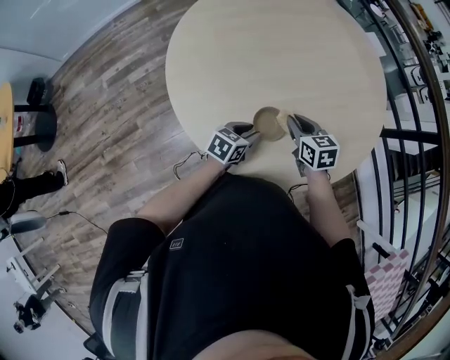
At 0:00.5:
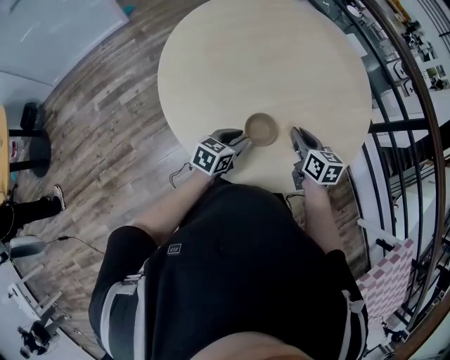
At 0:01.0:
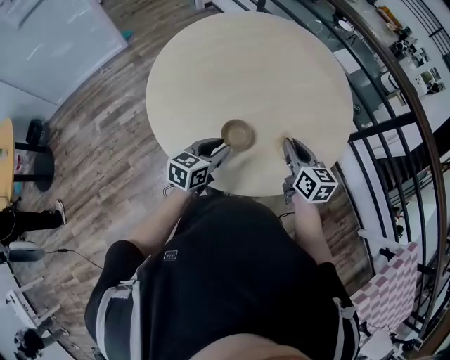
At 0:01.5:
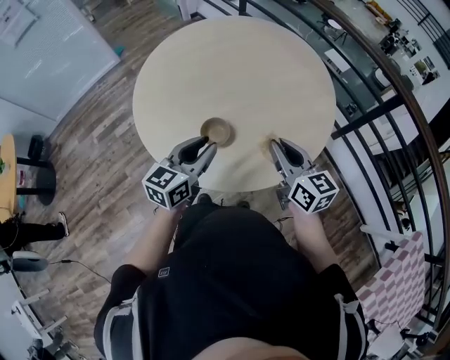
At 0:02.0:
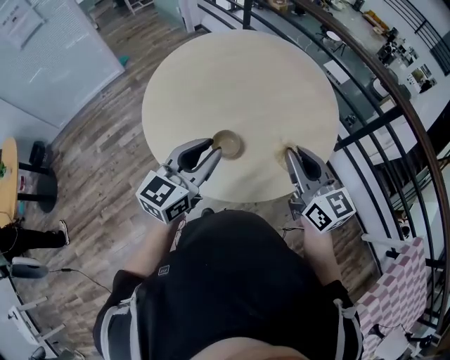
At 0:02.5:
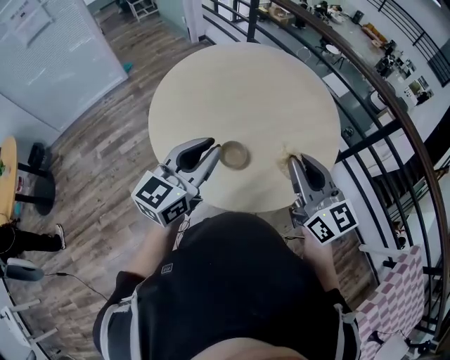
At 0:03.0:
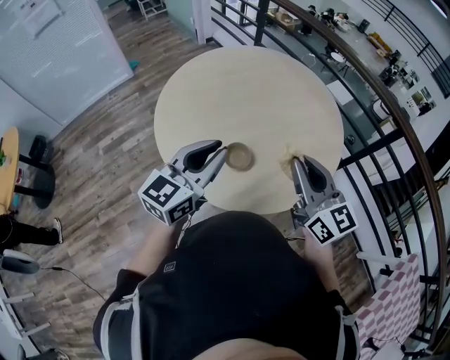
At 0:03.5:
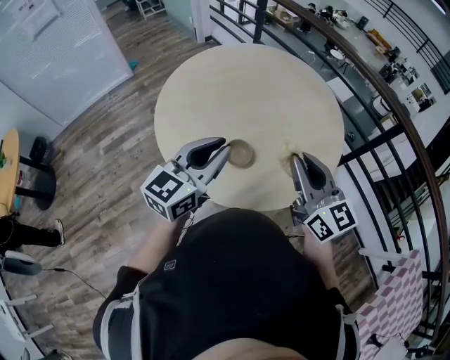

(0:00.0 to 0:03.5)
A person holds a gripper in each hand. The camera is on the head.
0:00.0 - 0:02.0: The left gripper travels upward by approximately 30 cm, and tilts its fingers about 30 degrees upward. The right gripper is displaced upward, backward and to the right by some 35 cm, and points its fingers approximately 40 degrees further upward.
0:02.0 - 0:03.5: The right gripper moves some 5 cm.

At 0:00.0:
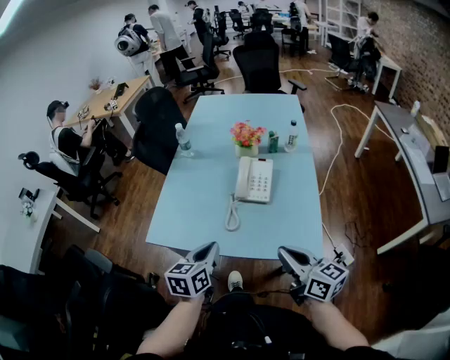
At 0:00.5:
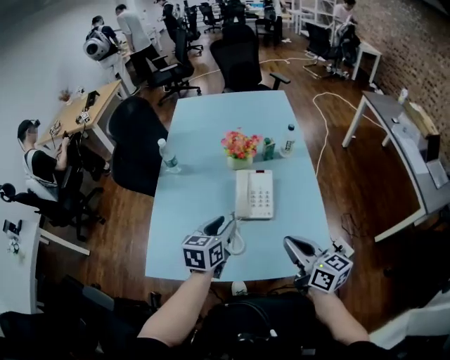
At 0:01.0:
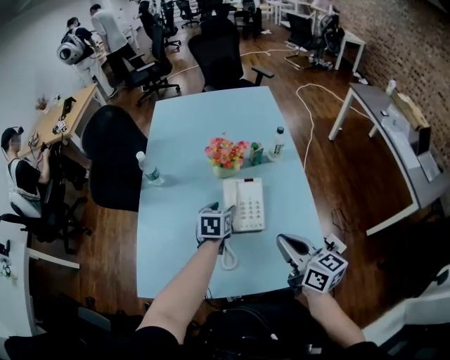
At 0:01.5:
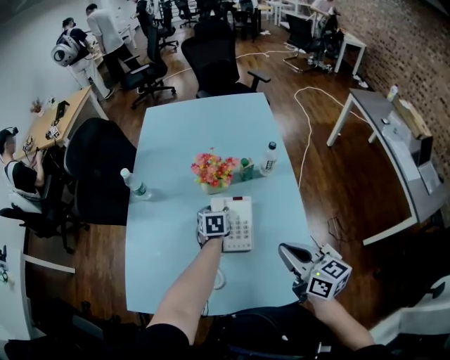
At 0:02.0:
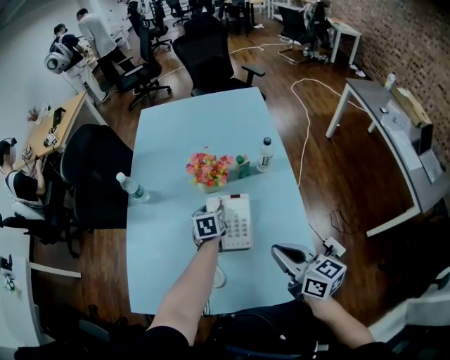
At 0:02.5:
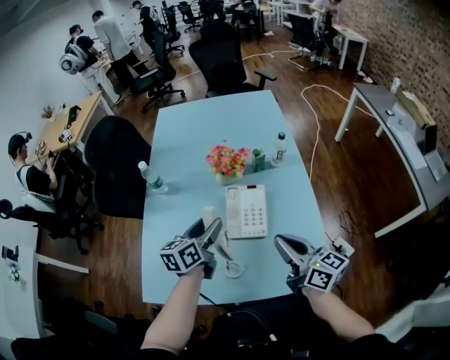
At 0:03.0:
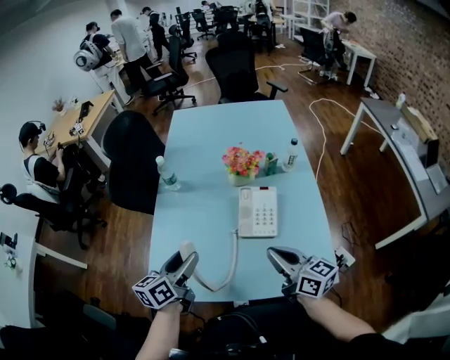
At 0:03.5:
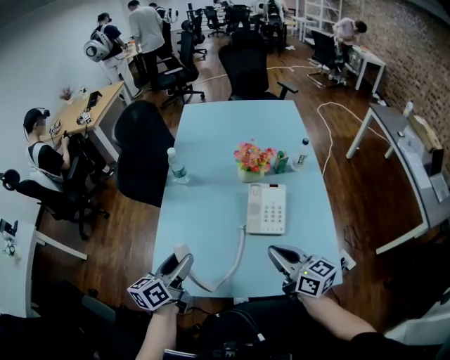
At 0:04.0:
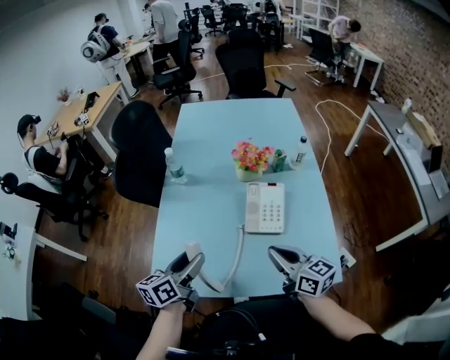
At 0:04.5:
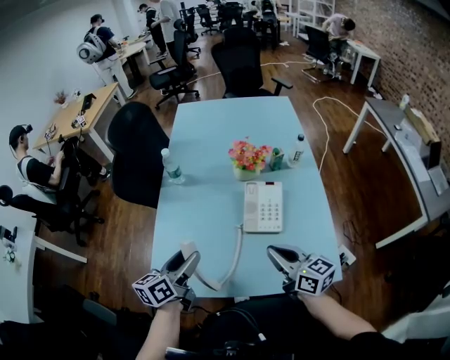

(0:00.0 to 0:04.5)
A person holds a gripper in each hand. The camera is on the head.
0:00.0 - 0:02.0: The right gripper travels forward by roughly 25 cm. Meanwhile the left gripper goes approximately 40 cm forward, turns by approximately 20 degrees, and opens up.
0:02.0 - 0:04.5: The right gripper travels to the left by approximately 15 cm; the left gripper shifts approximately 35 cm backward, to the left and upward, and tilts its fingers roughly 30 degrees upward.

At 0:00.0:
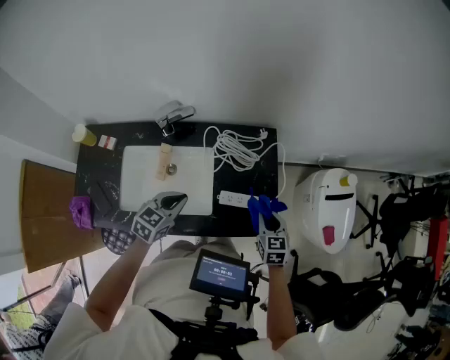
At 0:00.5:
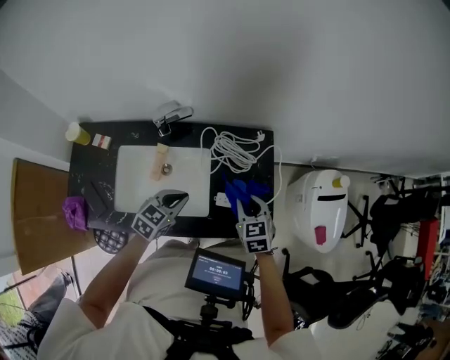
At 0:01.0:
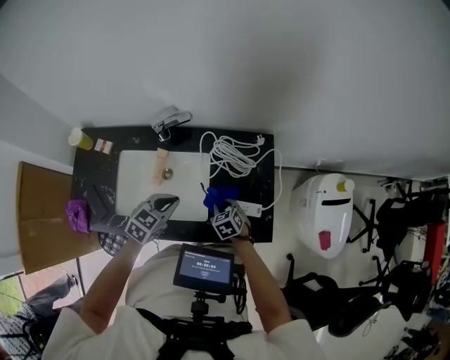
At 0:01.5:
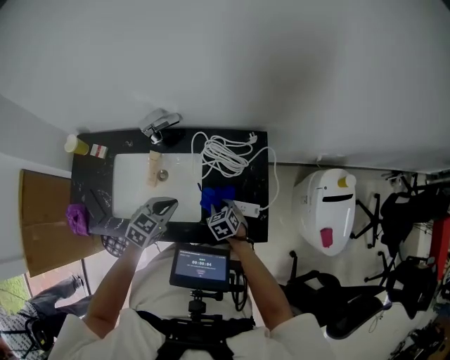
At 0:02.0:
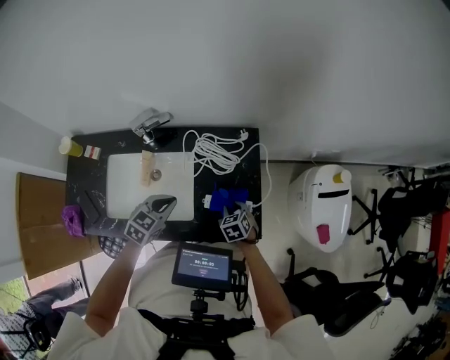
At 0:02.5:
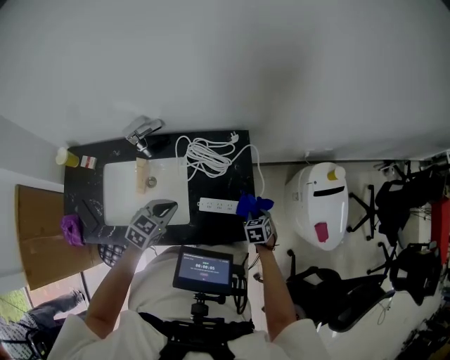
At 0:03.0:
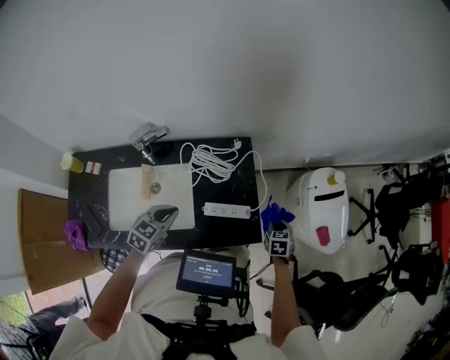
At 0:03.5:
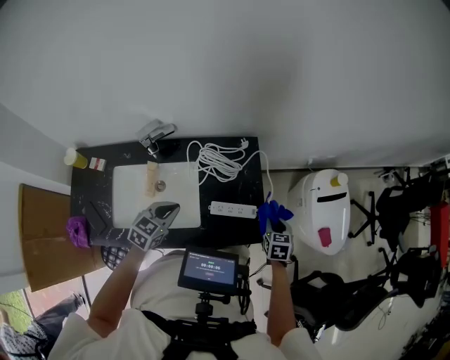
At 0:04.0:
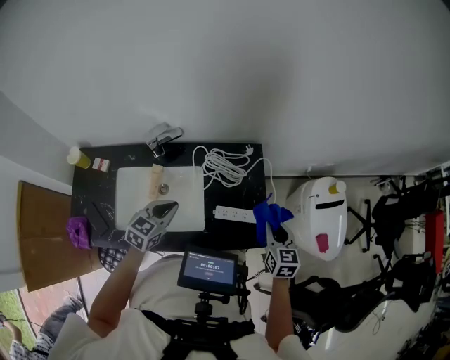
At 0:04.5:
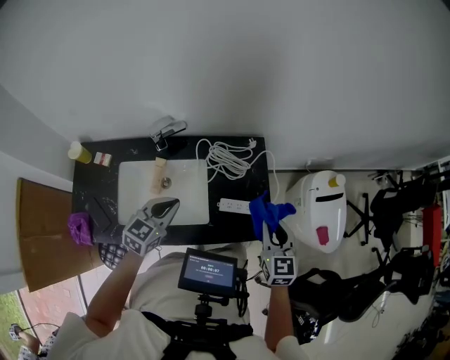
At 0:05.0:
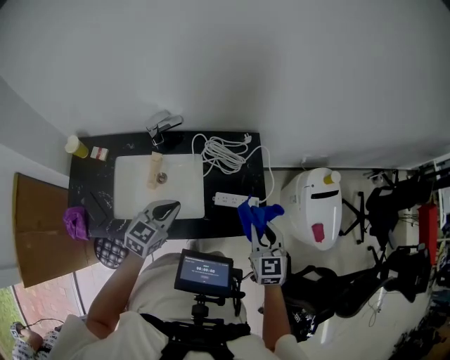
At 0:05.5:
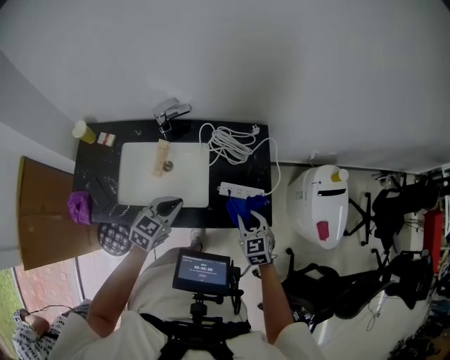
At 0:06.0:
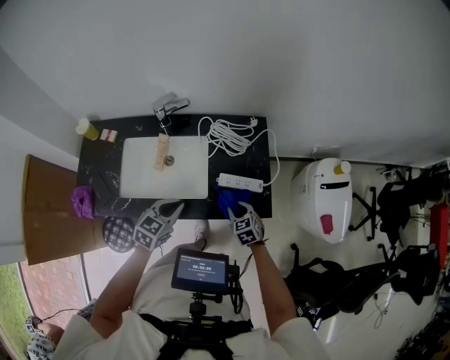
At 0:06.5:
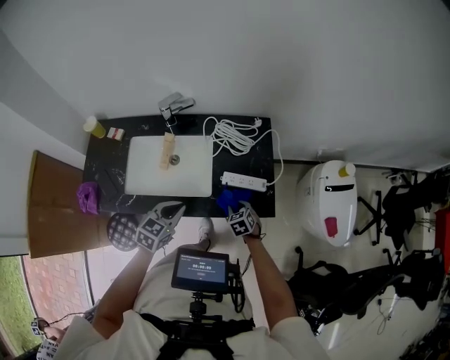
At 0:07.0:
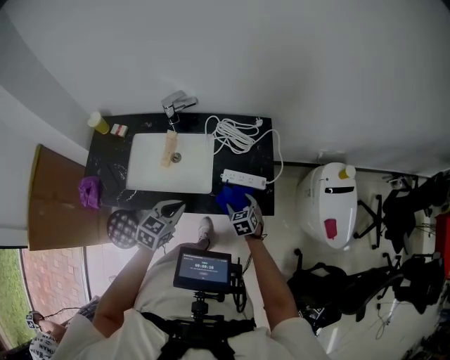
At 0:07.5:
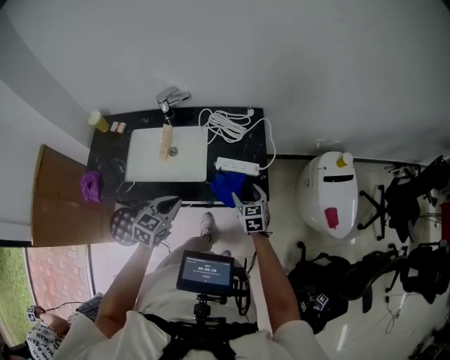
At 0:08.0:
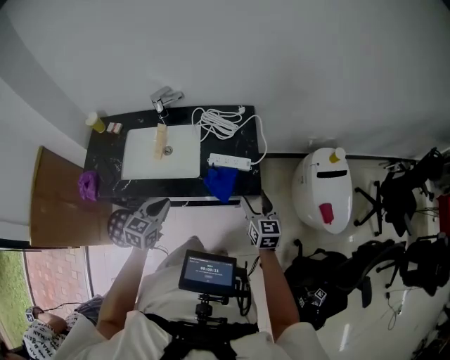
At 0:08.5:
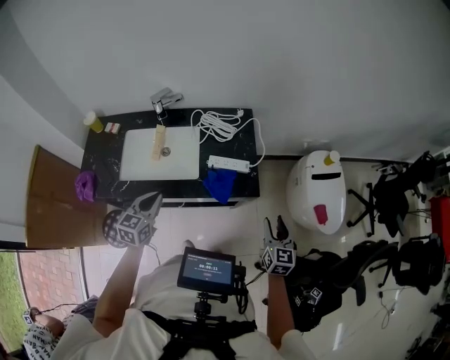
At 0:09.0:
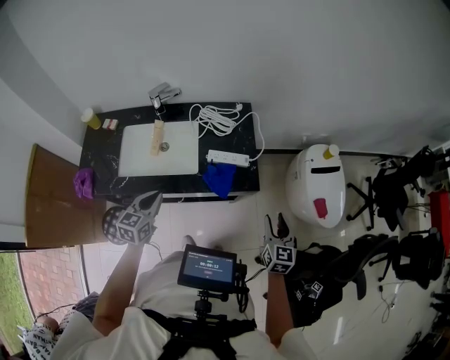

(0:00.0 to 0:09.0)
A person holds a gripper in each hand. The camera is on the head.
0:00.0 - 0:02.0: The left gripper travels to the right by about 5 cm. The right gripper is displaced downward by some 10 cm, travels to the left and back again, approximately 15 cm each way, and rotates some 20 degrees.
0:02.0 - 0:04.5: The right gripper moves upward, some 25 cm, and points its fingers some 40 degrees further upward, while the left gripper shifts about 15 cm upward, to the left and backward.
0:04.5 - 0:07.0: The left gripper travels backward and to the right by roughly 20 cm; the right gripper moves downward, roughly 25 cm, swivels approximately 30 degrees, and opens its fingers.
0:07.0 - 0:09.0: The left gripper goes some 10 cm backward and upward. Meanwhile the right gripper goes about 35 cm to the right, upward and backward, swivels about 40 degrees, and closes its fingers.

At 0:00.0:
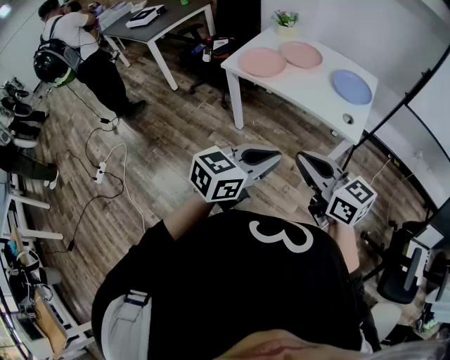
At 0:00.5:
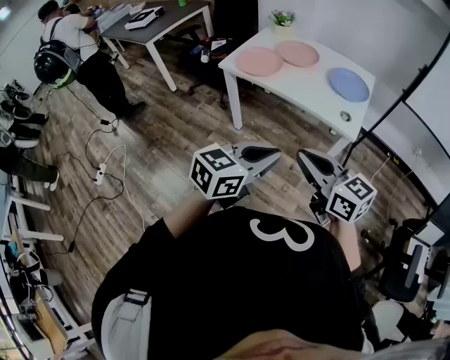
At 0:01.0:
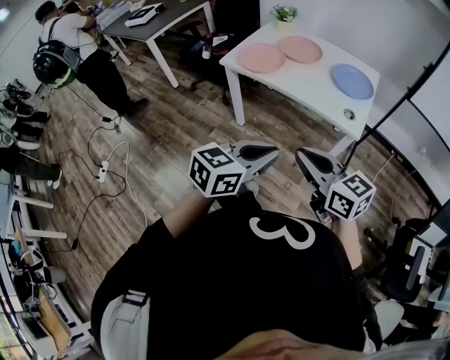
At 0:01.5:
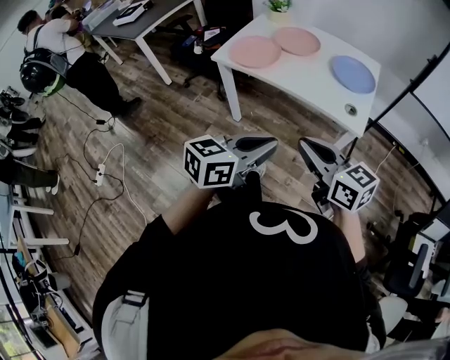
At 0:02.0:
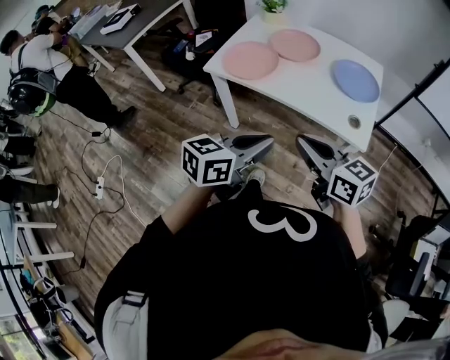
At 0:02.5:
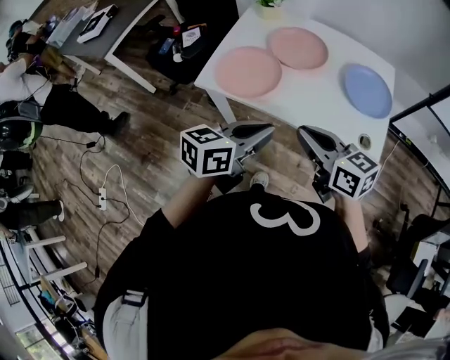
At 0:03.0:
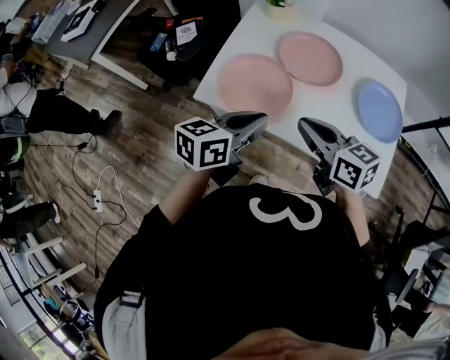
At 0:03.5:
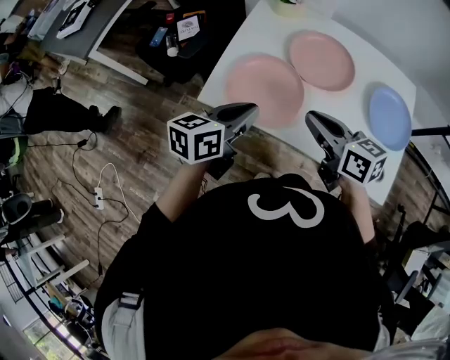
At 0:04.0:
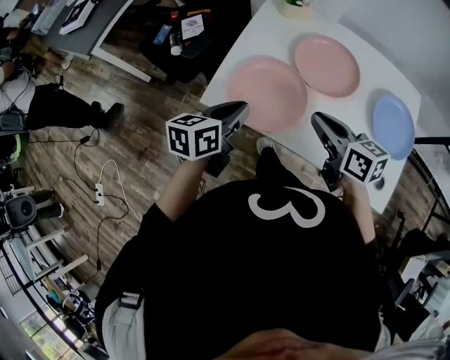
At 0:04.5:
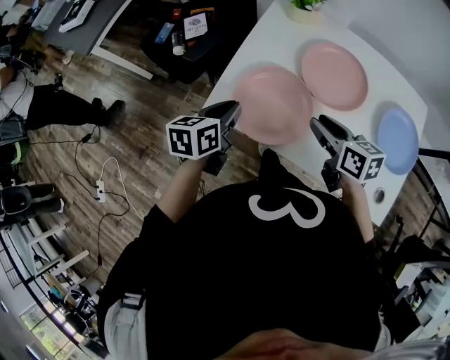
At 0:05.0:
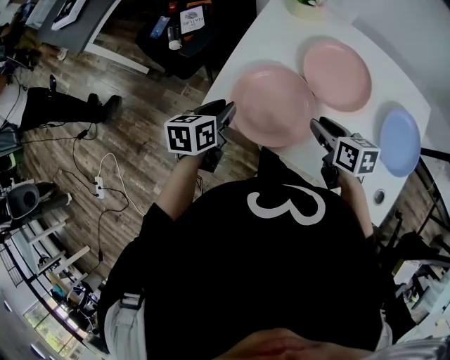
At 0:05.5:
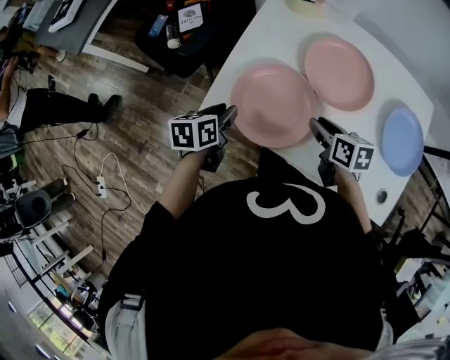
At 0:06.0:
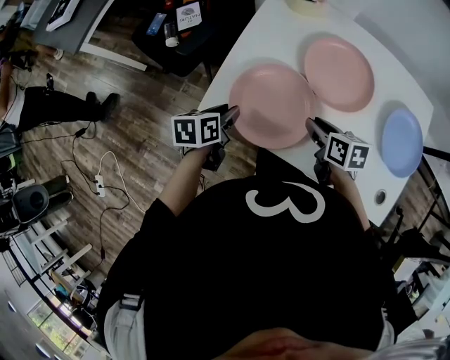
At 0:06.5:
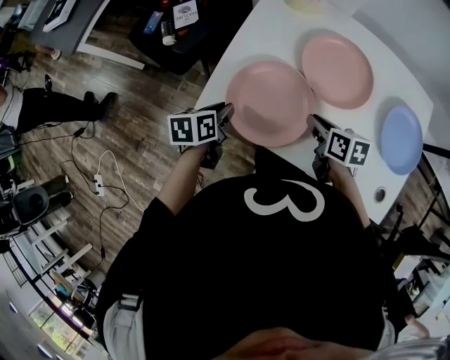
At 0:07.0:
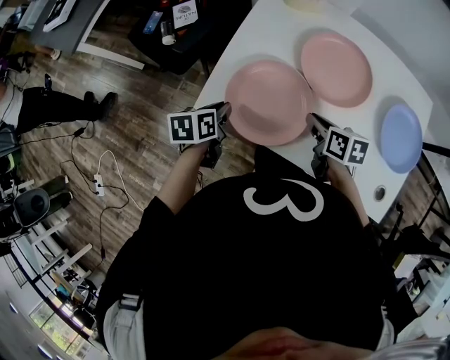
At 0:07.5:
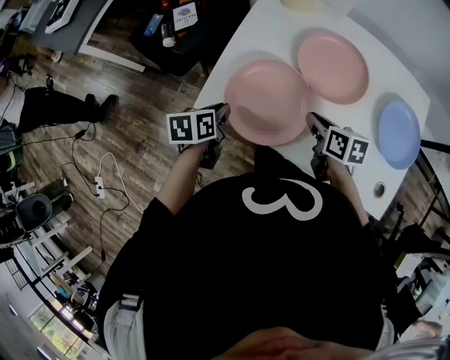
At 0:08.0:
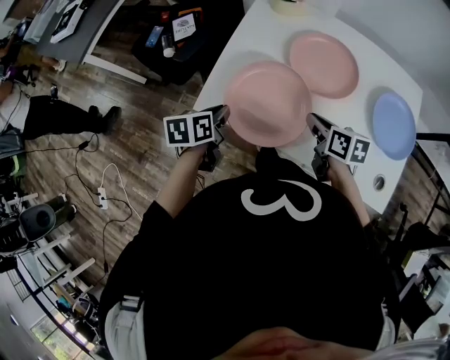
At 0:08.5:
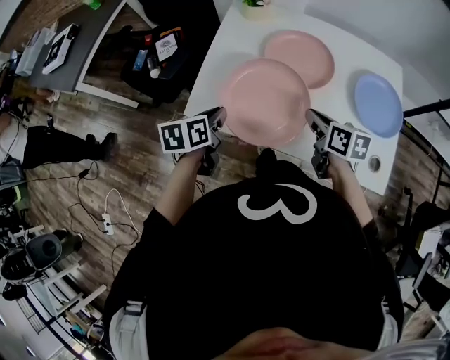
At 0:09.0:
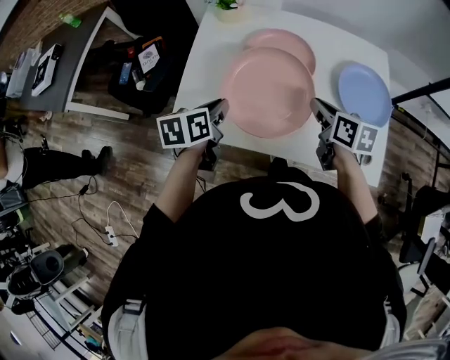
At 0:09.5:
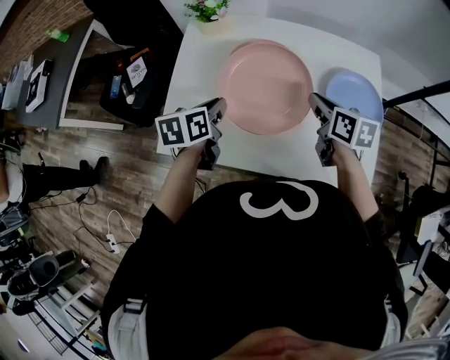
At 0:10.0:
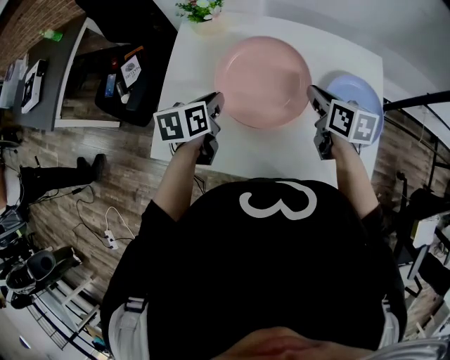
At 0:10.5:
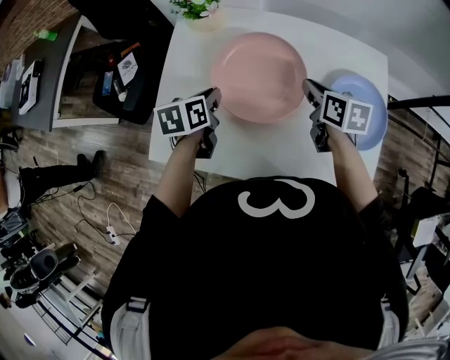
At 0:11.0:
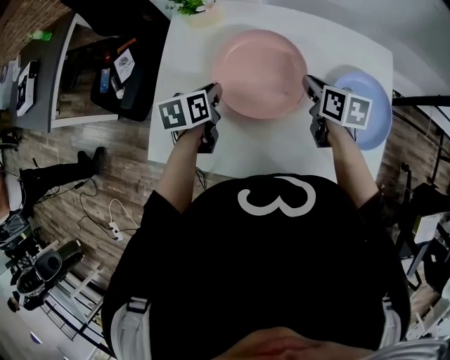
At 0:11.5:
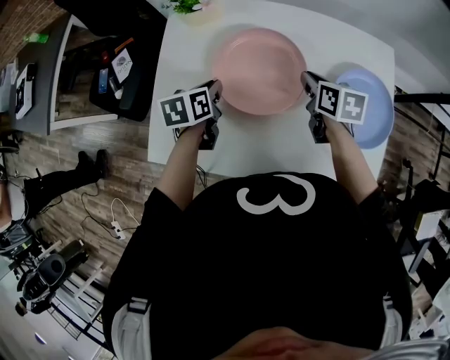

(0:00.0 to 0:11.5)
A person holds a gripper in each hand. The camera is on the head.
0:00.0 - 0:02.0: Both grippers move forward, roughly 15 cm.
0:02.0 - 0:04.0: The left gripper shifts roughly 40 cm forward and to the left, and rotates about 20 degrees; the right gripper shifts approximately 35 cm forward.
0:04.0 - 0:06.0: The left gripper shifts roughly 15 cm downward, forward and to the left, swivels about 20 degrees, and opens up. The right gripper is displaced downward and forward by about 15 cm, changes its angle by some 20 degrees, and opens.
0:06.0 - 0:07.5: The grippers stay close to where they were, moving slightly.
0:07.5 - 0:09.5: The left gripper moves to the right, upward and forward, roughly 20 cm. The right gripper travels to the right and upward by about 20 cm.
0:09.5 - 0:11.5: The grippers both shift forward and downward by approximately 10 cm.
